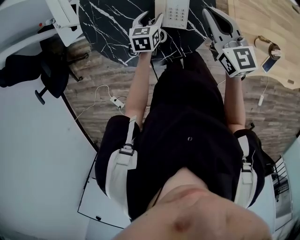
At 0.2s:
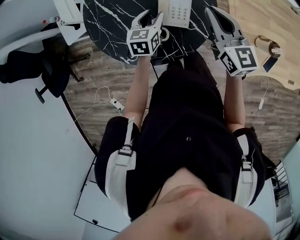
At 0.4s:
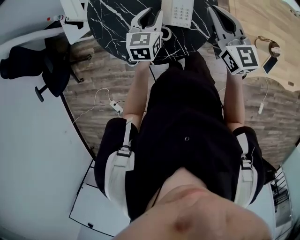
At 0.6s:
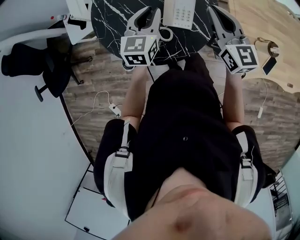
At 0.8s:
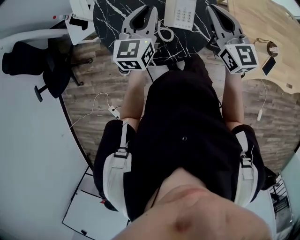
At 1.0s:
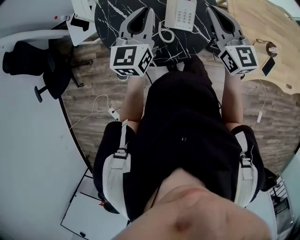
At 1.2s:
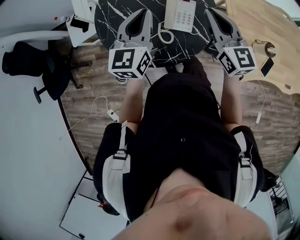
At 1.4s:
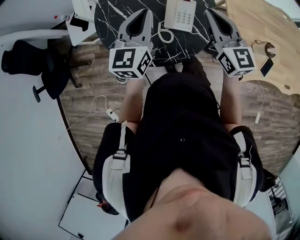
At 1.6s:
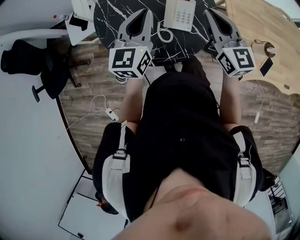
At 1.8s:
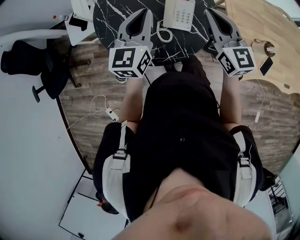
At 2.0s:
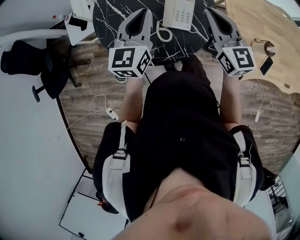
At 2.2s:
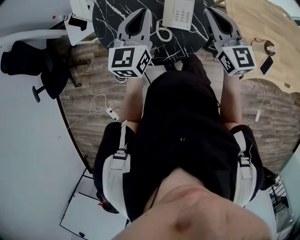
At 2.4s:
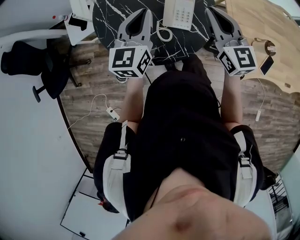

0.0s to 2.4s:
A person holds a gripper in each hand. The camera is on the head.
0.0s to 1.2s: The left gripper heads upward, covering some 25 cm, points its fingers some 30 degrees further upward, and closes up; the right gripper is displaced upward and backward by roughly 10 cm.
1.2s to 2.4s: The two grippers keep their place.

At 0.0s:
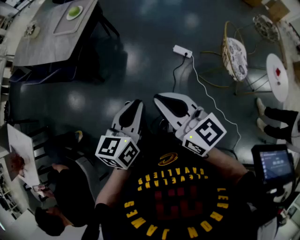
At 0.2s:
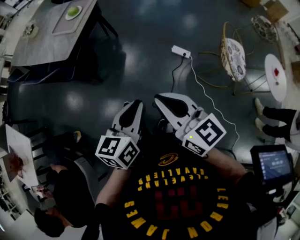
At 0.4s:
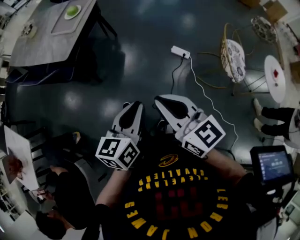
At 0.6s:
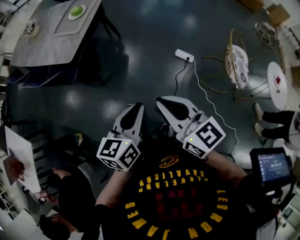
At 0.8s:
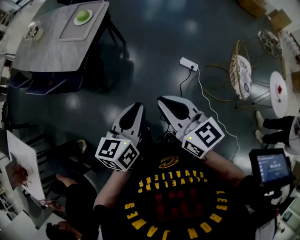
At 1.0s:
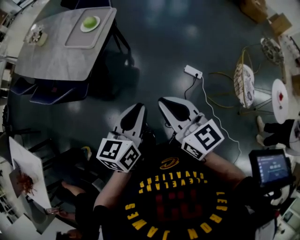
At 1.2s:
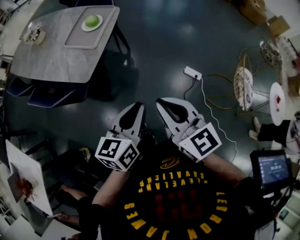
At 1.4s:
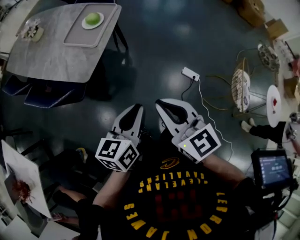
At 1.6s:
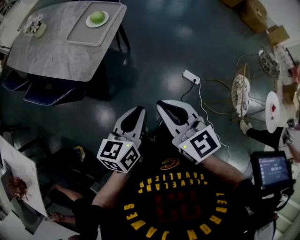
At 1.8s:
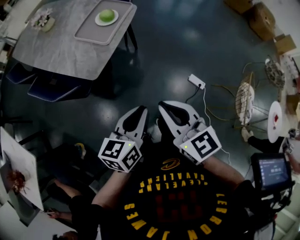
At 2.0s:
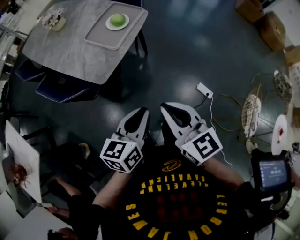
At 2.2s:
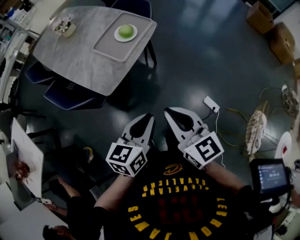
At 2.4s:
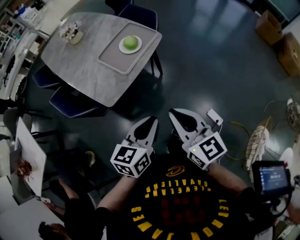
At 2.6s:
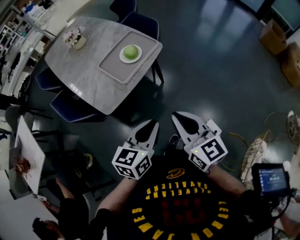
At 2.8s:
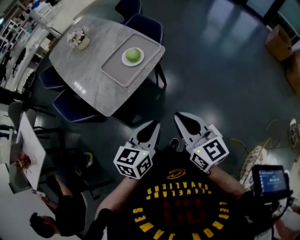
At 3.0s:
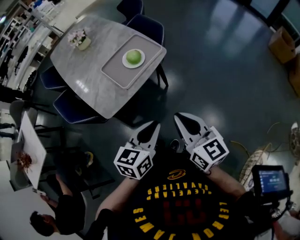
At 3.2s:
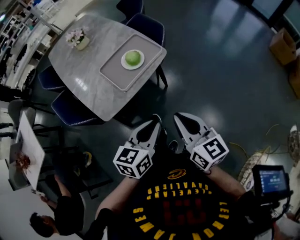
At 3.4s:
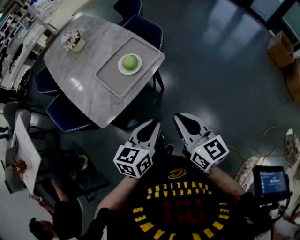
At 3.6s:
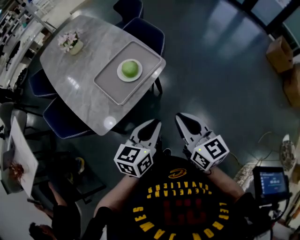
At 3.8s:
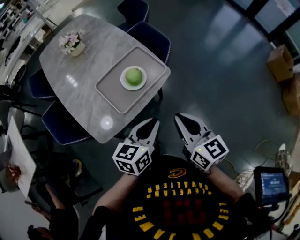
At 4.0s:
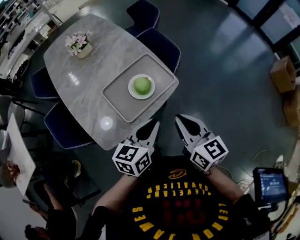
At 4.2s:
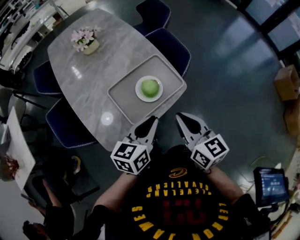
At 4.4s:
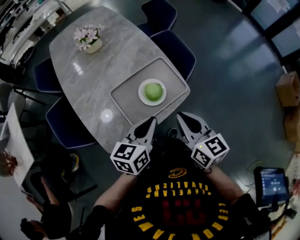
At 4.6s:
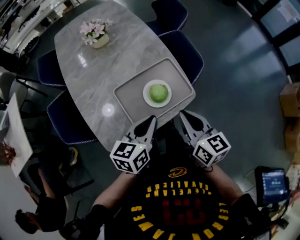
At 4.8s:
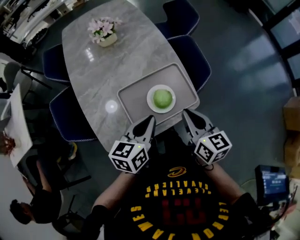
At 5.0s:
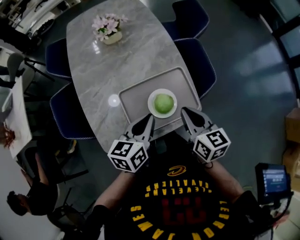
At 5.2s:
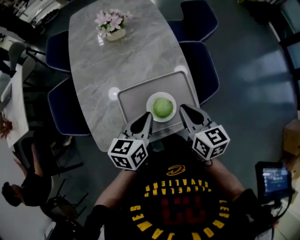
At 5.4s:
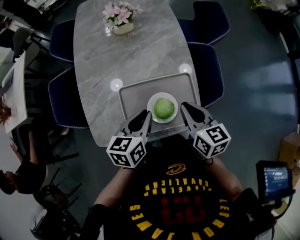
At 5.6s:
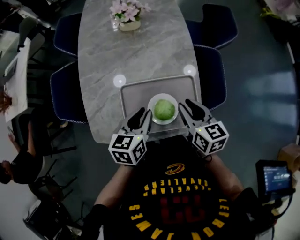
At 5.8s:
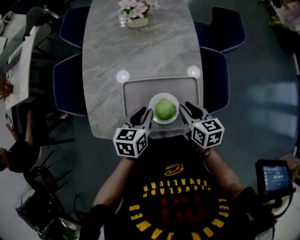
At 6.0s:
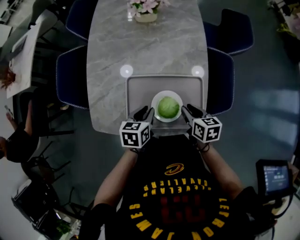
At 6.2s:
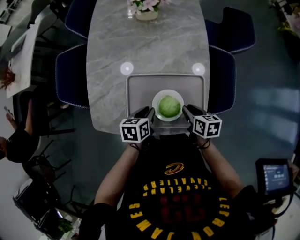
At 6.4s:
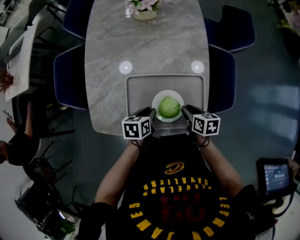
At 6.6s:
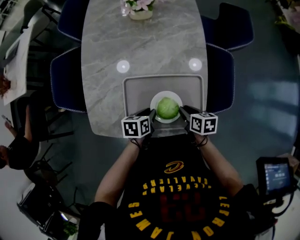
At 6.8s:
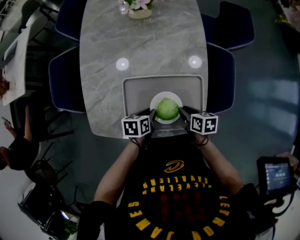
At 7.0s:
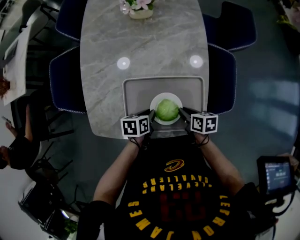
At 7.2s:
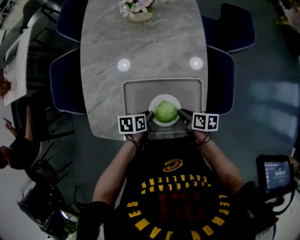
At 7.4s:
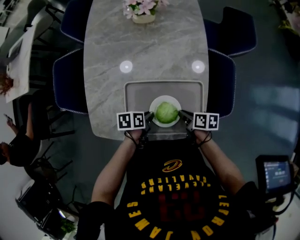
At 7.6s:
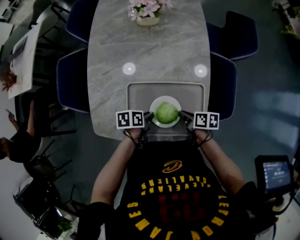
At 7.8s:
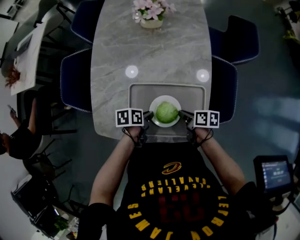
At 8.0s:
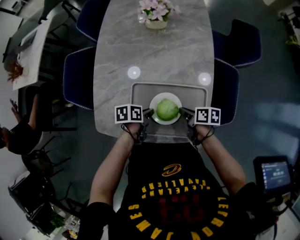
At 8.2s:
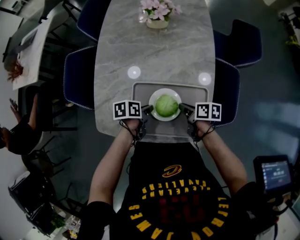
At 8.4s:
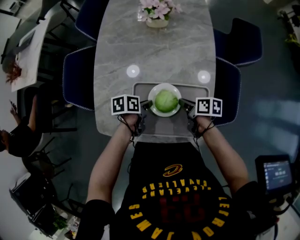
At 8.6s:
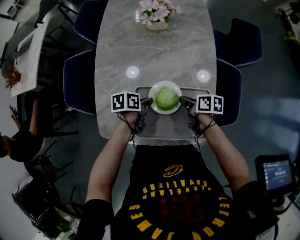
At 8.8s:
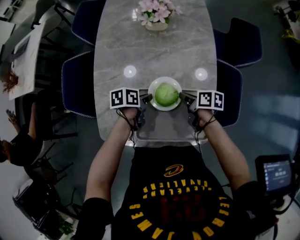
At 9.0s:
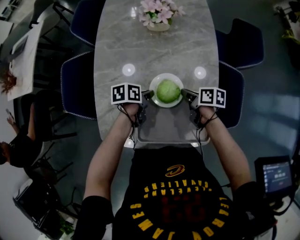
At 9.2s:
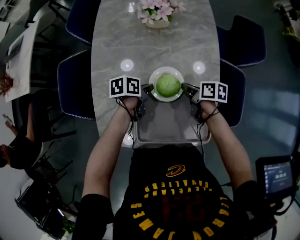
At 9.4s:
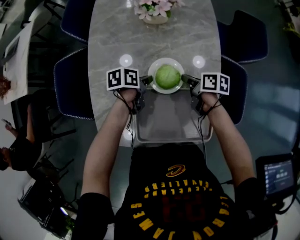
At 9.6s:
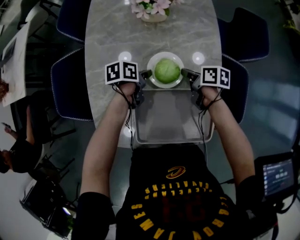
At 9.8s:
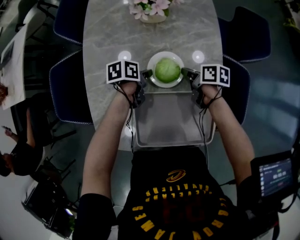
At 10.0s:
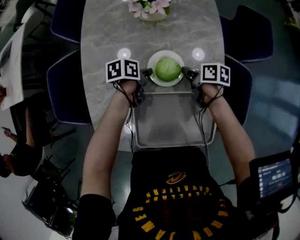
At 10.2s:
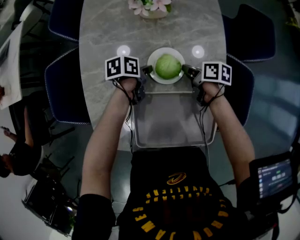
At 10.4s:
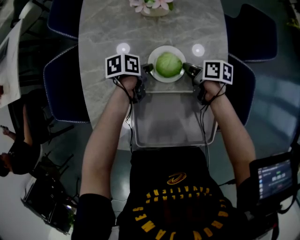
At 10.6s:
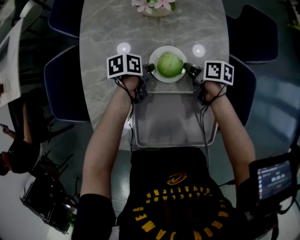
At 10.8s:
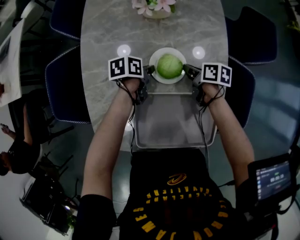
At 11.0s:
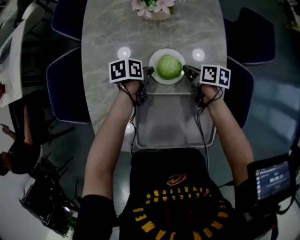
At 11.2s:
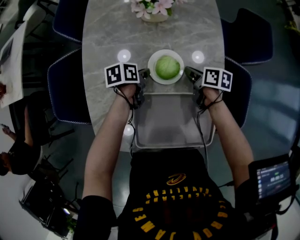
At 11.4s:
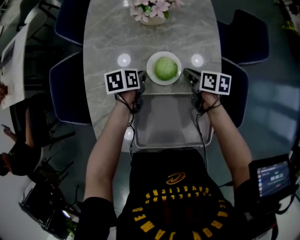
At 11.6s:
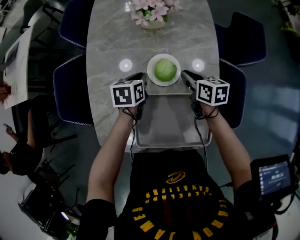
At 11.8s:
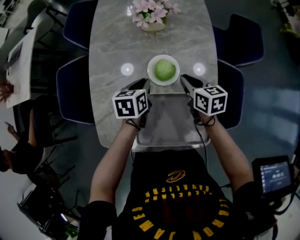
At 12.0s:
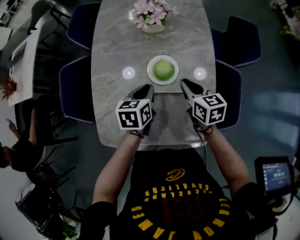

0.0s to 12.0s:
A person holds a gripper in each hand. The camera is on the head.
0.0s to 1.6s: The grippers both shift forward and to the left by roughly 30 cm.
1.6s to 3.0s: The grippers both shift forward and to the right by some 25 cm. The left gripper changes its angle by approximately 20 degrees. The right gripper changes its angle by about 20 degrees.
3.0s to 4.4s: The grippers both shift forward by some 30 cm.
4.4s to 6.0s: The two grippers go roughly 20 cm downward. The right gripper turns by about 40 degrees, and opens up; the left gripper changes its angle by approximately 40 degrees.
6.0s to 7.6s: The two grippers go some 10 cm downward. The left gripper turns by about 30 degrees. The right gripper turns by approximately 30 degrees.
7.6s to 9.0s: Both grippers travel together forward, approximately 15 cm.
9.0s to 10.4s: Both grippers move forward and downward, approximately 15 cm.
10.4s to 12.0s: Both grippers move upward and backward, some 15 cm. The right gripper swivels approximately 40 degrees; the left gripper swivels roughly 40 degrees.

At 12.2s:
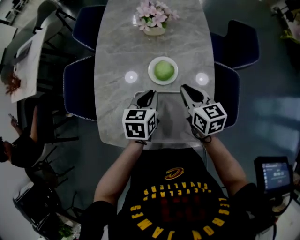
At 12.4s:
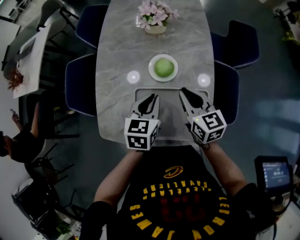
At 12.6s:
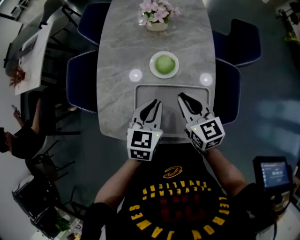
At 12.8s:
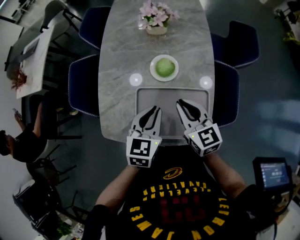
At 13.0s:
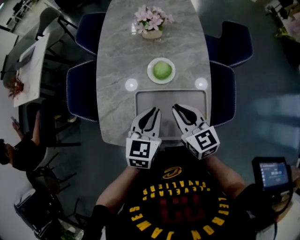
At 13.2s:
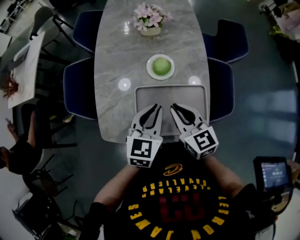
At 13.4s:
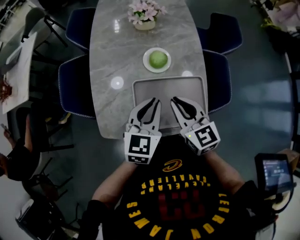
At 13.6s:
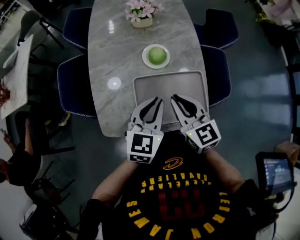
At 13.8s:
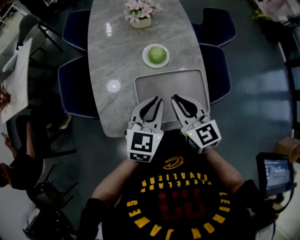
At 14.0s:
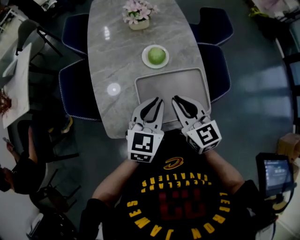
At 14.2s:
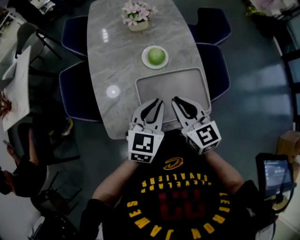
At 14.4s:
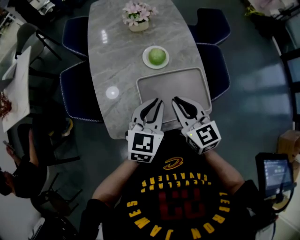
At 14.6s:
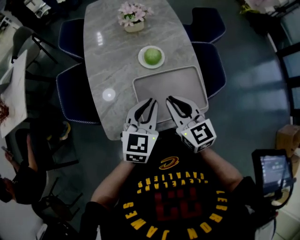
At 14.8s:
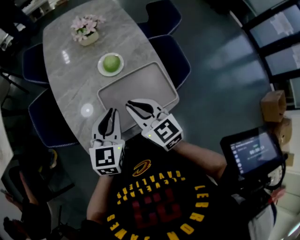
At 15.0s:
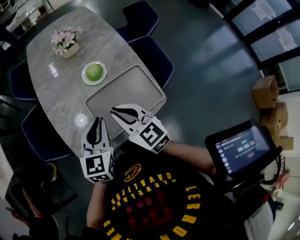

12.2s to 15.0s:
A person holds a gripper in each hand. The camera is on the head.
12.2s to 13.6s: The left gripper heads backward and upward, covering some 15 cm, and turns by about 30 degrees, while the right gripper shifts some 20 cm backward, upward and to the left.
13.6s to 15.0s: The right gripper shifts by about 5 cm.

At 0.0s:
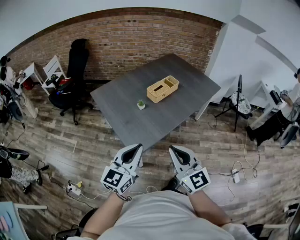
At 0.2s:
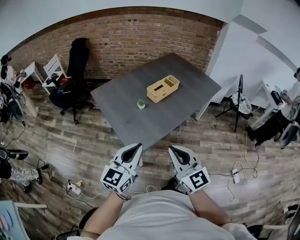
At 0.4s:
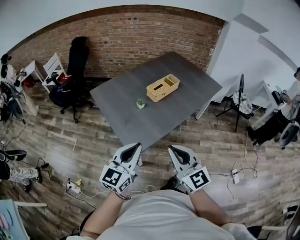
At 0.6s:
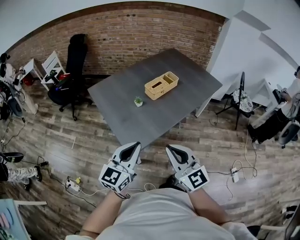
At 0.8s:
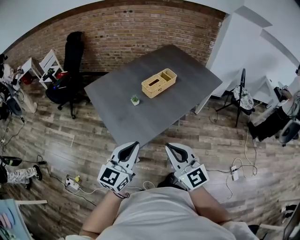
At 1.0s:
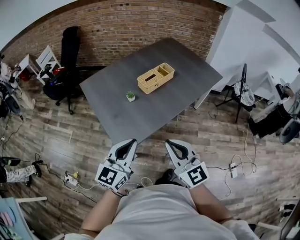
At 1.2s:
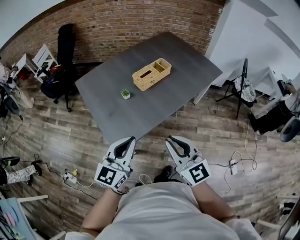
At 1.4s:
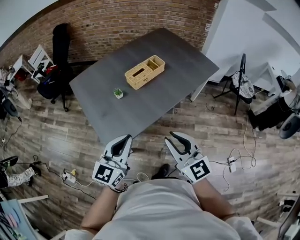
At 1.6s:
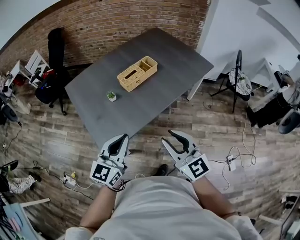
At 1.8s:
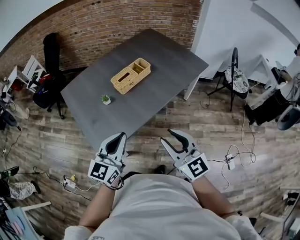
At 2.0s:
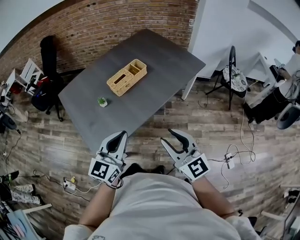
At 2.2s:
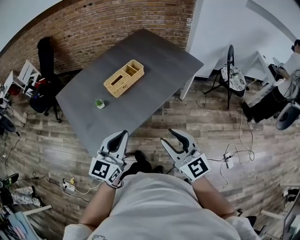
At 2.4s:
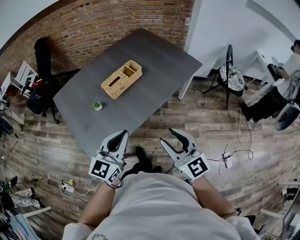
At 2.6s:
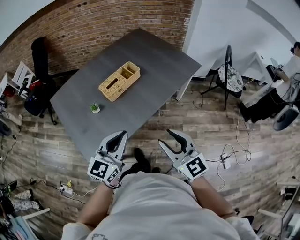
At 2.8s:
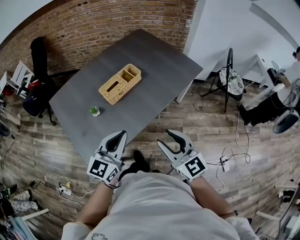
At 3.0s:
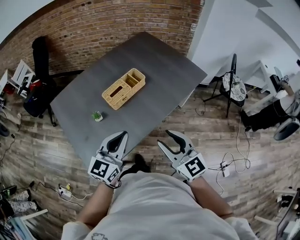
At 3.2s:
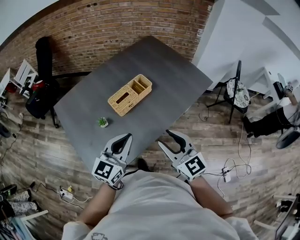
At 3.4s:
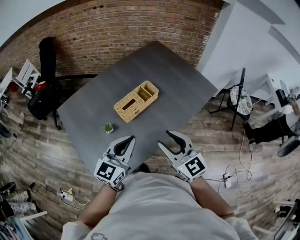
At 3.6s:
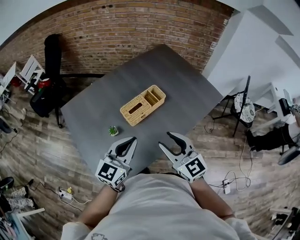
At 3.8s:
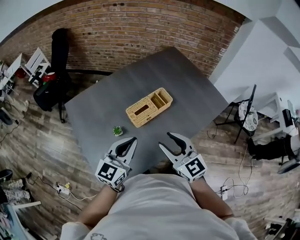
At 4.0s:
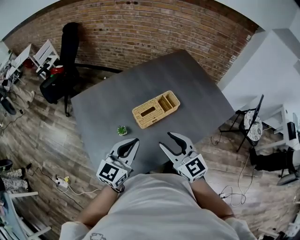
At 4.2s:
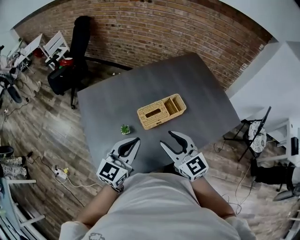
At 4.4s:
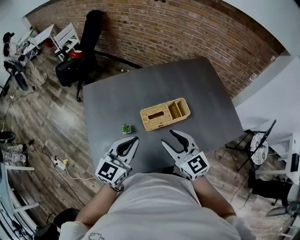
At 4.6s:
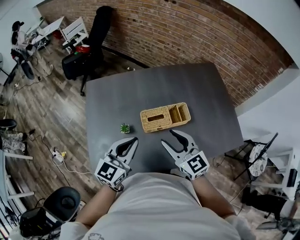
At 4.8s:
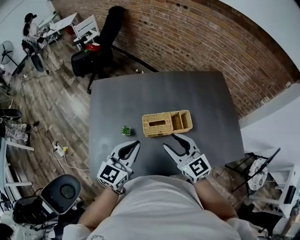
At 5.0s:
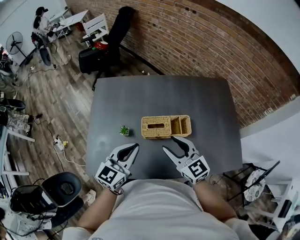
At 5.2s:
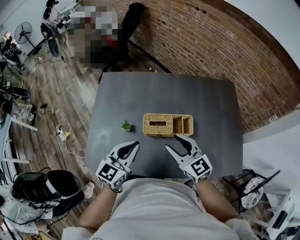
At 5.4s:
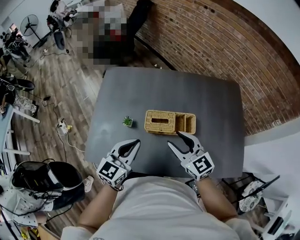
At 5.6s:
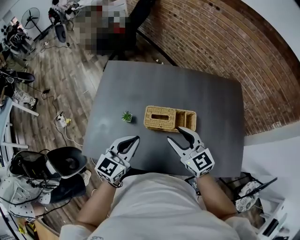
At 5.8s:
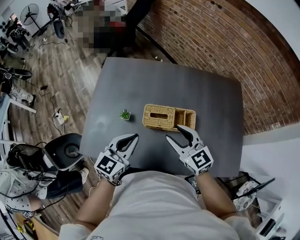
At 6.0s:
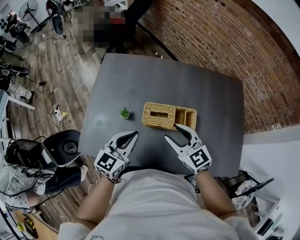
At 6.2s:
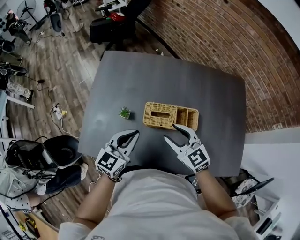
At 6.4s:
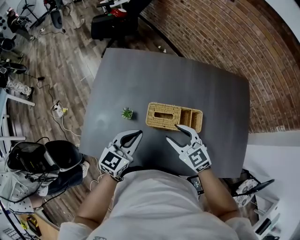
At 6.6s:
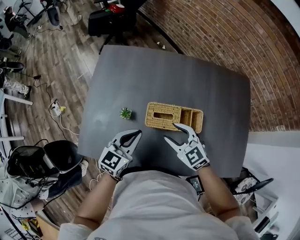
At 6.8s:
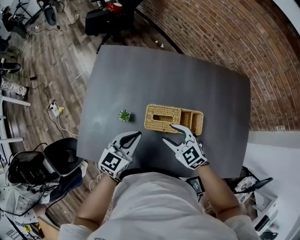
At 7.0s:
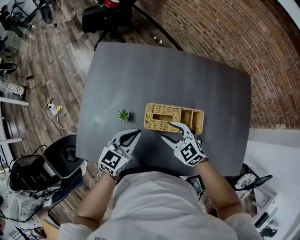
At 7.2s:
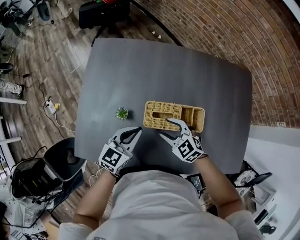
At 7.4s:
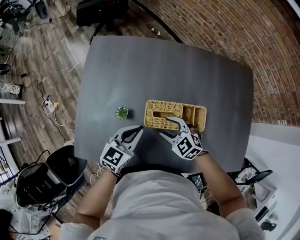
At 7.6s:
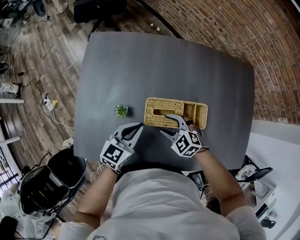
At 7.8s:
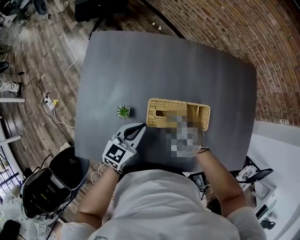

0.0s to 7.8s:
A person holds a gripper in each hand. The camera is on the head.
0.0s to 1.6s: Both grippers move to the right and forward, some 20 cm. The right gripper opens its fingers.
1.6s to 3.2s: Both grippers travel together forward, roughly 20 cm.
3.2s to 4.6s: The right gripper changes place by some 20 cm, and swivels some 30 degrees. Meanwhile the left gripper changes place by some 15 cm, and rotates some 30 degrees.
4.6s to 6.2s: The right gripper is displaced downward and forward by some 10 cm, and rotates about 30 degrees, while the left gripper shifts roughly 10 cm downward.
6.2s to 7.8s: The left gripper moves downward and forward, some 15 cm, while the right gripper moves downward, some 20 cm, and changes its angle by roughly 30 degrees.
